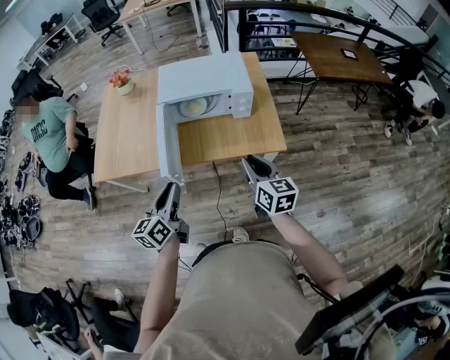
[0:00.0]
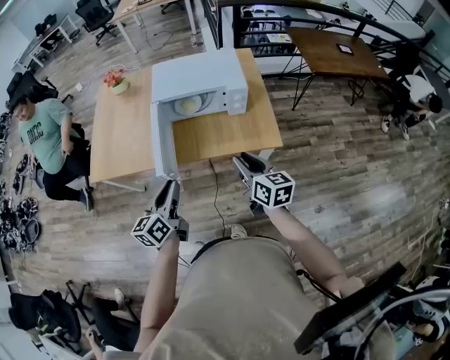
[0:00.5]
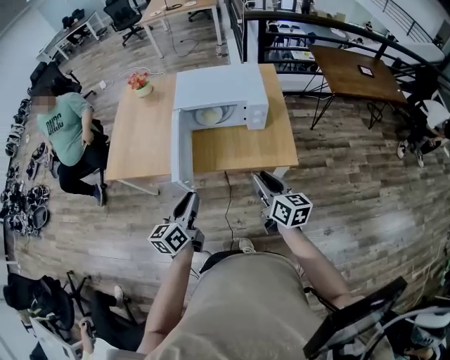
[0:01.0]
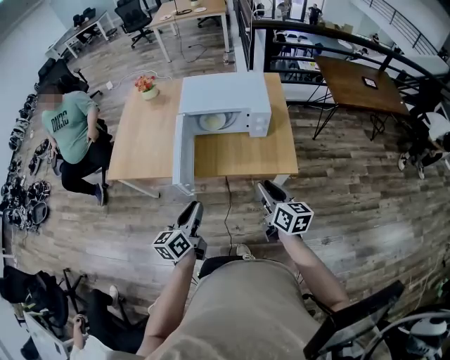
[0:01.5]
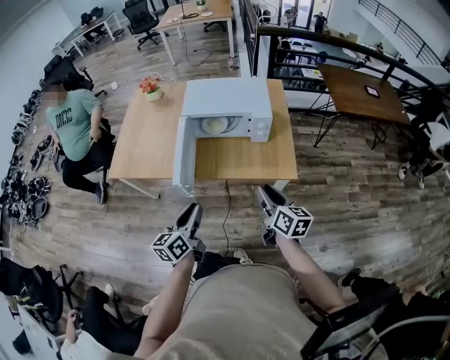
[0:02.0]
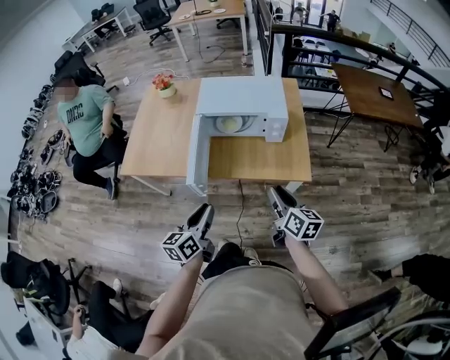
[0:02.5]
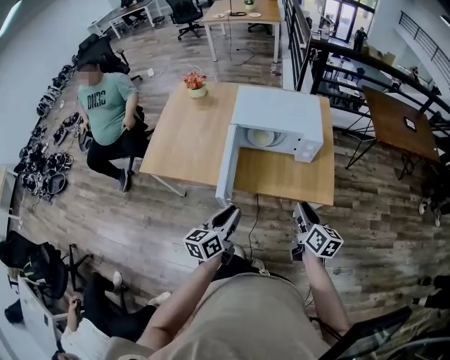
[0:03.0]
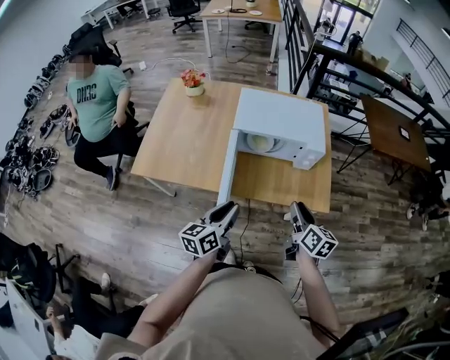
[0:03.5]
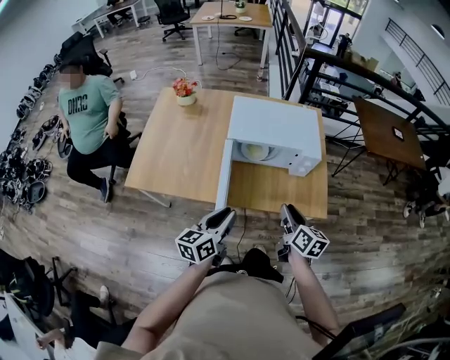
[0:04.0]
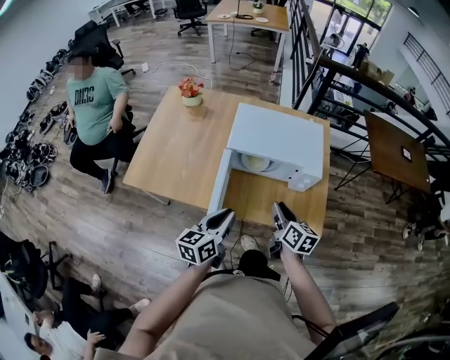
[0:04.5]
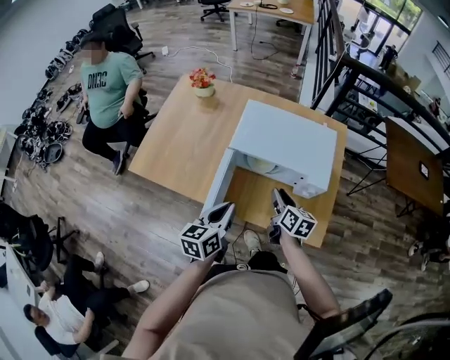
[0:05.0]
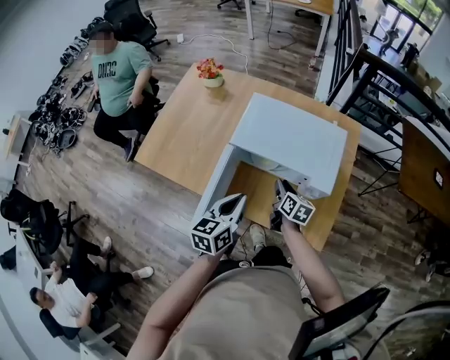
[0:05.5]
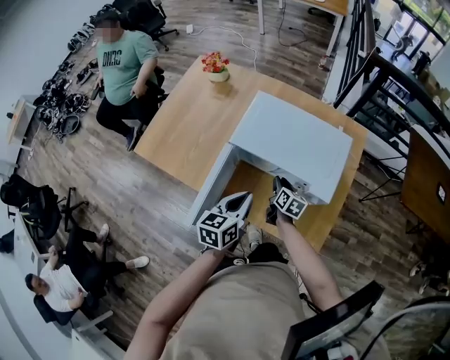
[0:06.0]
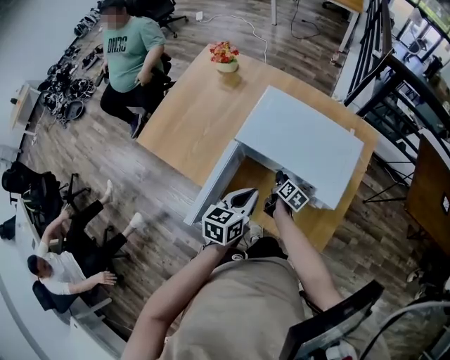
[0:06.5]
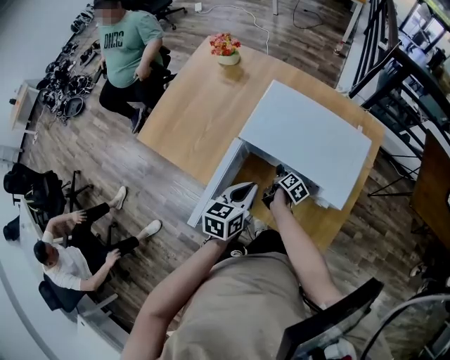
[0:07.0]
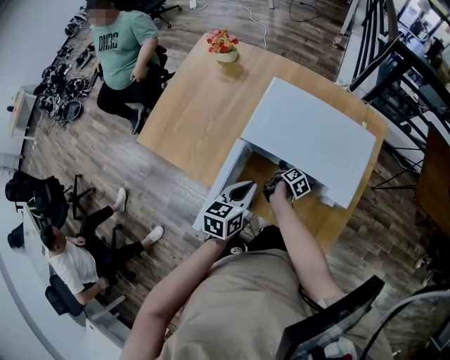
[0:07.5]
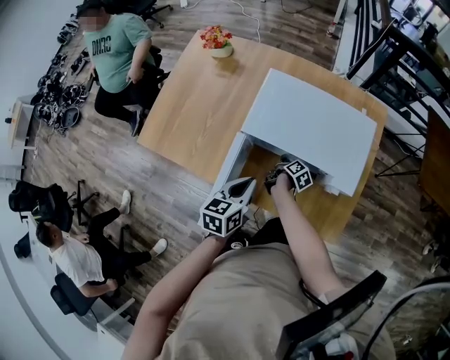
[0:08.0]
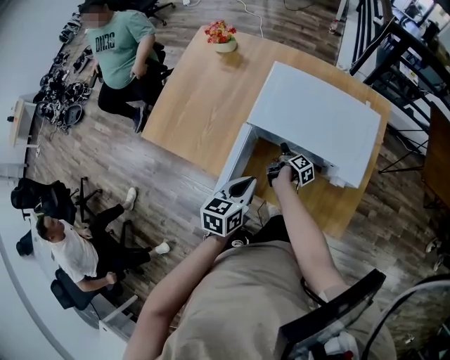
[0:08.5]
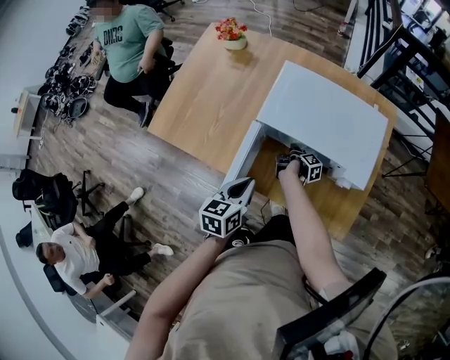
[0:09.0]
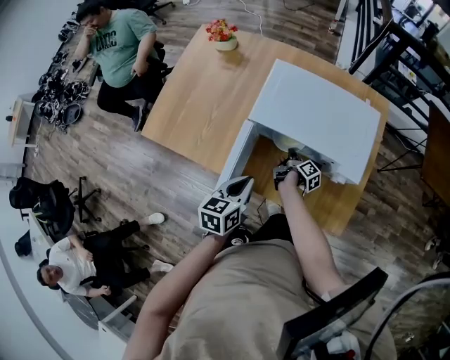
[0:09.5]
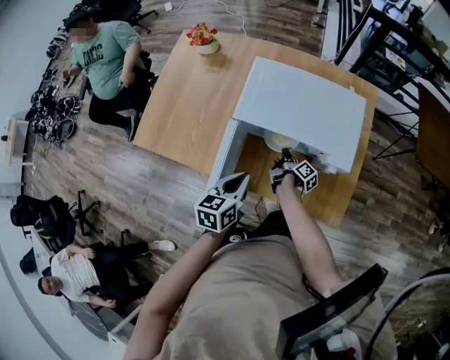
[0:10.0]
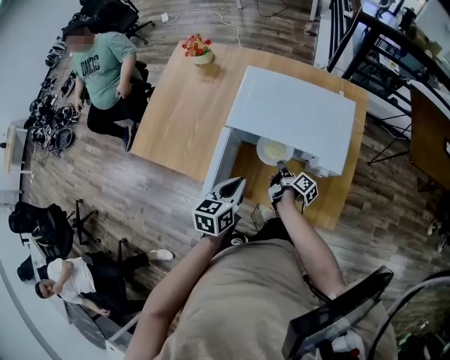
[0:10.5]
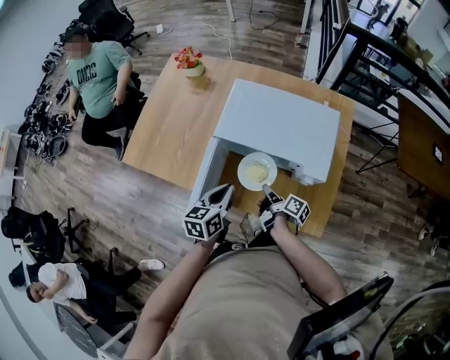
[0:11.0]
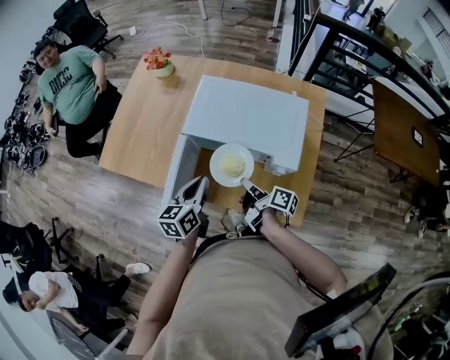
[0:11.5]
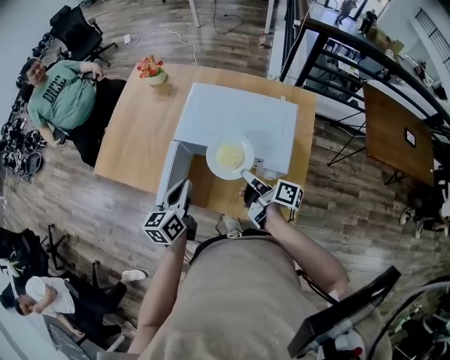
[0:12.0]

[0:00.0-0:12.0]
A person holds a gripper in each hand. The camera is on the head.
0:00.0 to 0:02.0: The left gripper moves about 5 cm.
0:02.0 to 0:04.0: Both grippers travel together forward and to the left, approximately 15 cm.
0:04.0 to 0:06.0: The right gripper travels forward and downward by some 35 cm, while the left gripper heads forward and to the right, covering roughly 25 cm, and rotates approximately 20 degrees.
0:06.0 to 0:08.0: The left gripper heads to the left, covering about 5 cm, while the right gripper is displaced downward by some 10 cm, and rolls clockwise, seen from behind, by approximately 40 degrees.
0:08.0 to 0:10.0: The right gripper moves roughly 5 cm, changes its angle by approximately 20 degrees, and opens, then closes once more.
0:10.0 to 0:12.0: The right gripper moves upward, about 25 cm, and changes its angle by about 40 degrees. Meanwhile the left gripper goes roughly 5 cm upward, and rotates roughly 20 degrees.

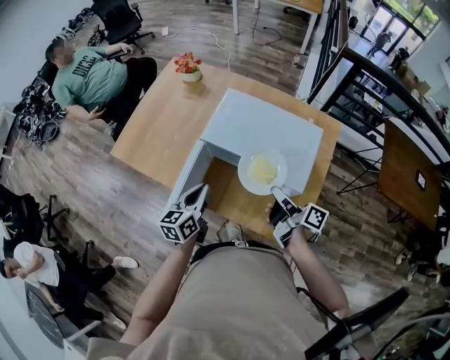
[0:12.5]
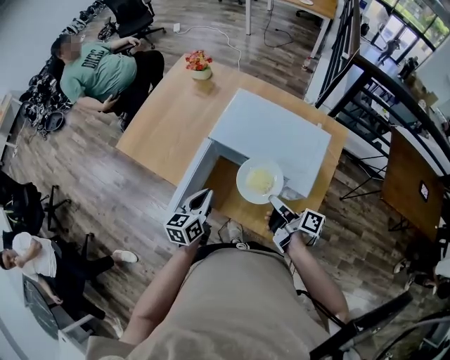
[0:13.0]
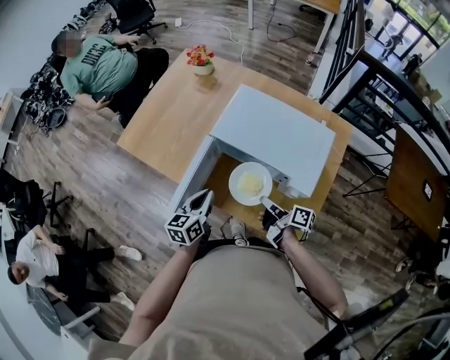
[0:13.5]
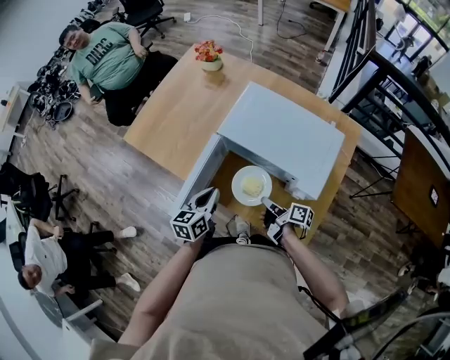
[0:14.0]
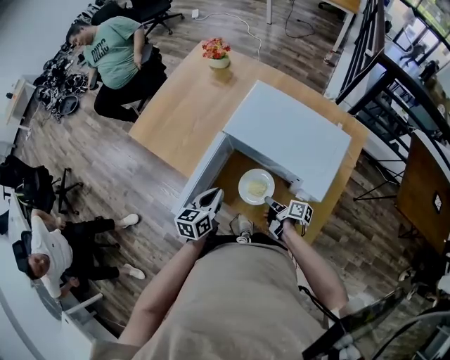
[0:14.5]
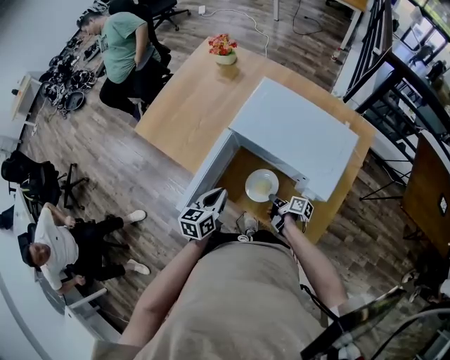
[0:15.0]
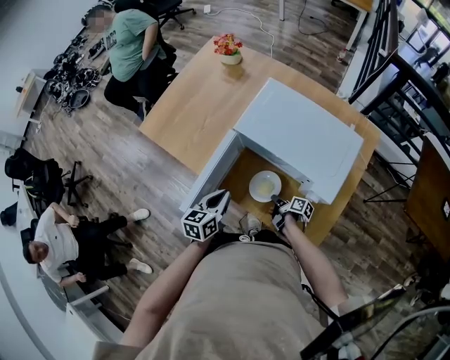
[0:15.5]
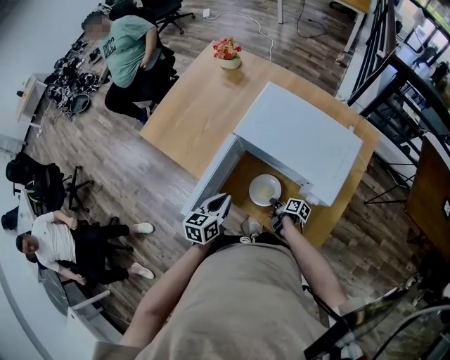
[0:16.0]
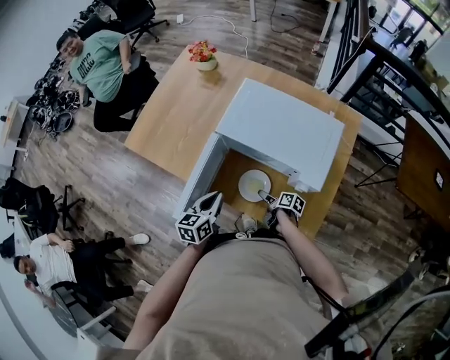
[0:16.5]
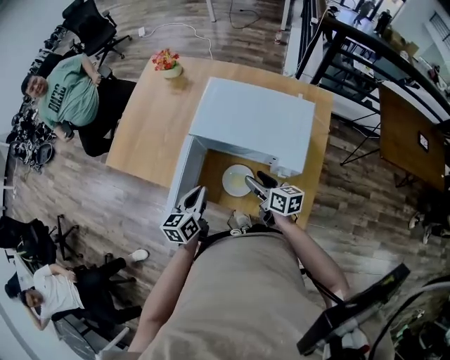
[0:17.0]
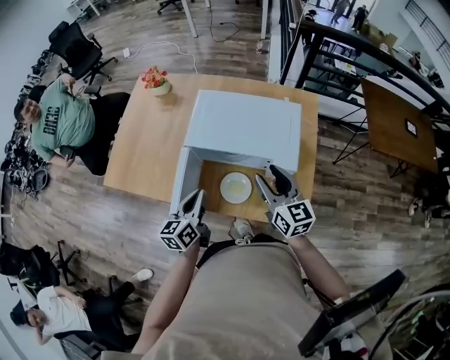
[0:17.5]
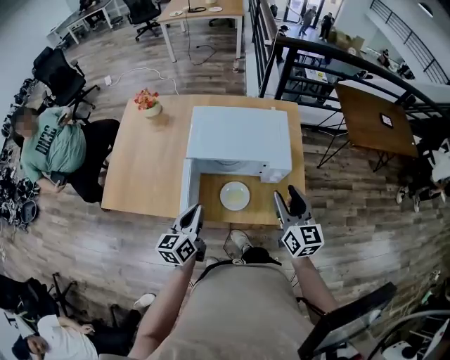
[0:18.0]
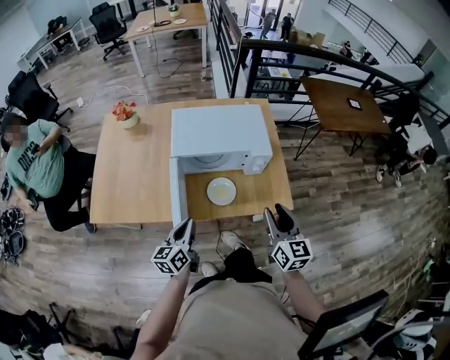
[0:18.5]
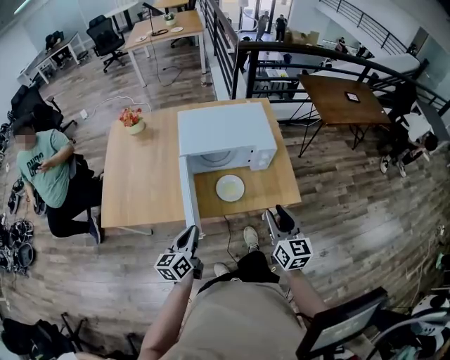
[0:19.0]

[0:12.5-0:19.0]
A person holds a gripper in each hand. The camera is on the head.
0:12.5 to 0:14.5: The left gripper heads downward, covering about 10 cm; the right gripper travels downward by roughly 25 cm, and rotates about 30 degrees.
0:14.5 to 0:17.0: The right gripper is displaced upward by about 15 cm, swivels approximately 40 degrees, and opens its fingers.
0:17.0 to 0:19.0: The left gripper ends up roughly 20 cm from where it was, and turns by approximately 20 degrees. Meanwhile the right gripper moves about 30 cm, and changes its angle by about 50 degrees.

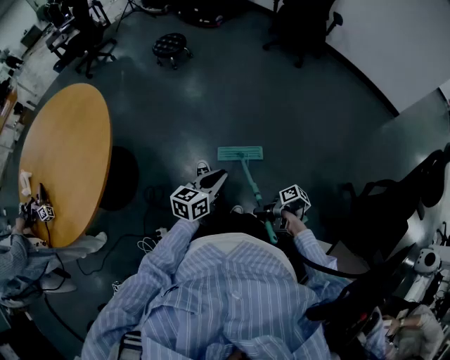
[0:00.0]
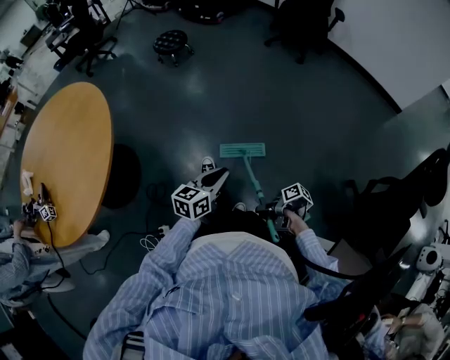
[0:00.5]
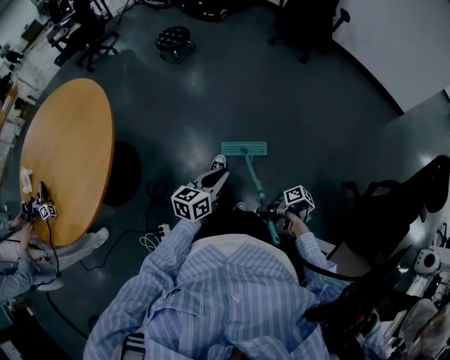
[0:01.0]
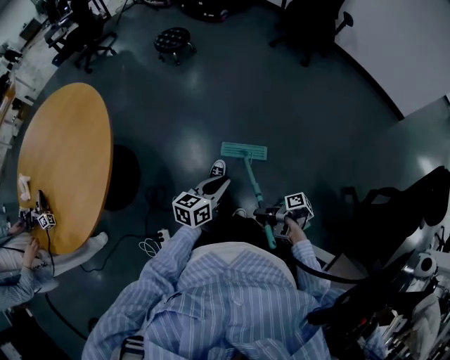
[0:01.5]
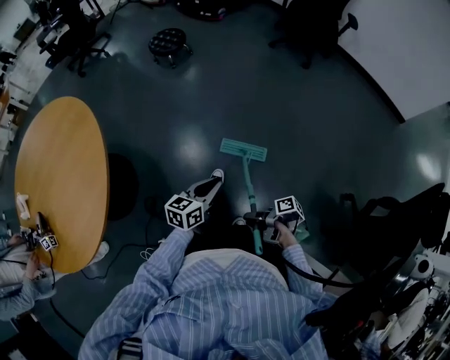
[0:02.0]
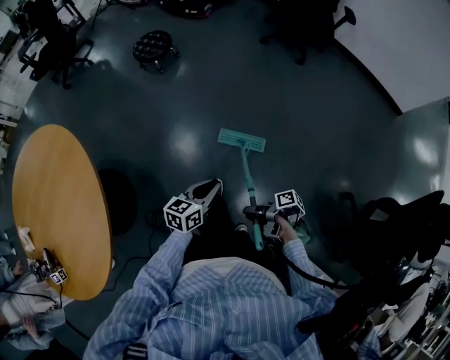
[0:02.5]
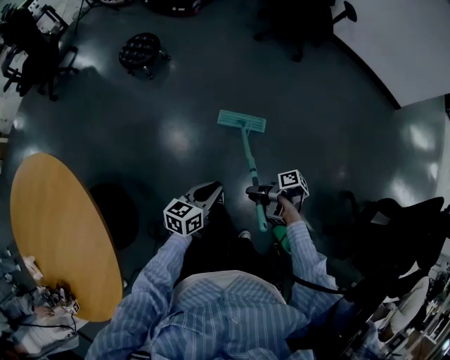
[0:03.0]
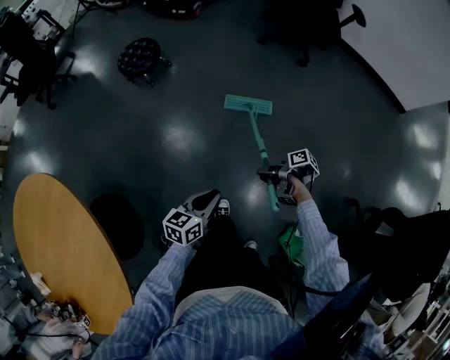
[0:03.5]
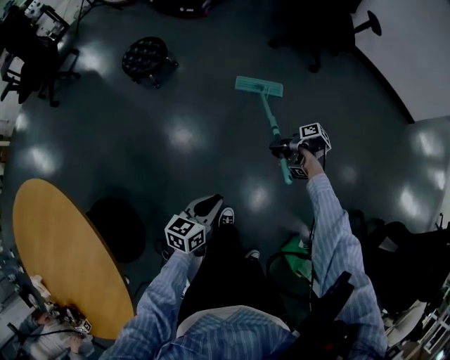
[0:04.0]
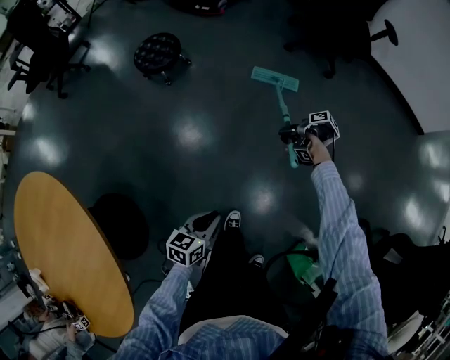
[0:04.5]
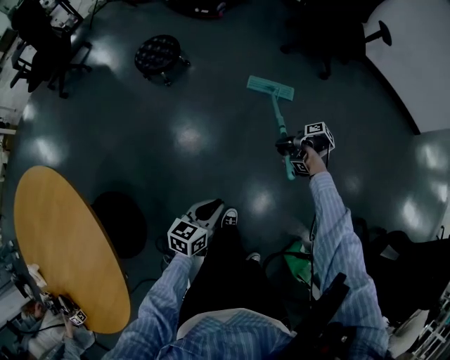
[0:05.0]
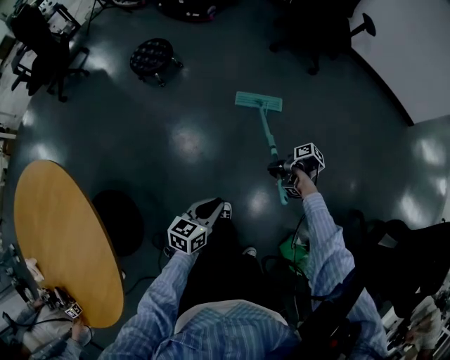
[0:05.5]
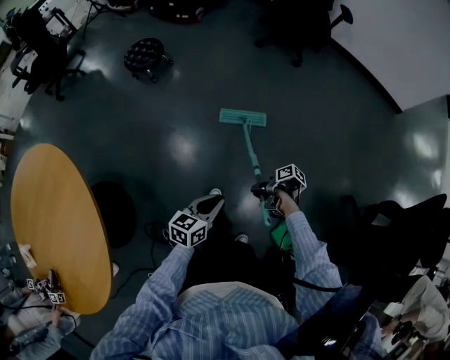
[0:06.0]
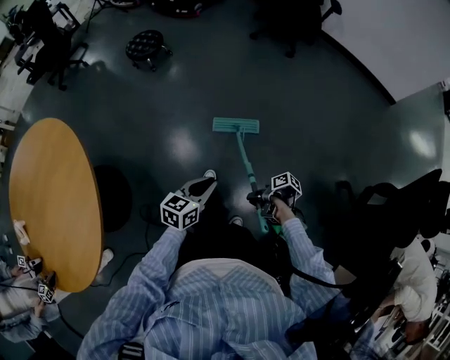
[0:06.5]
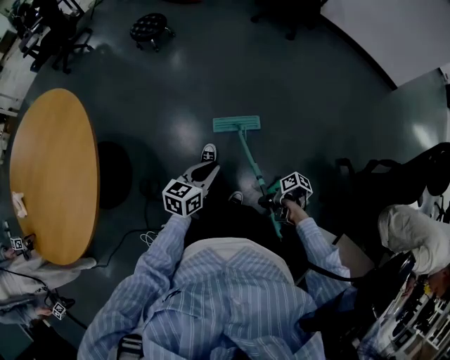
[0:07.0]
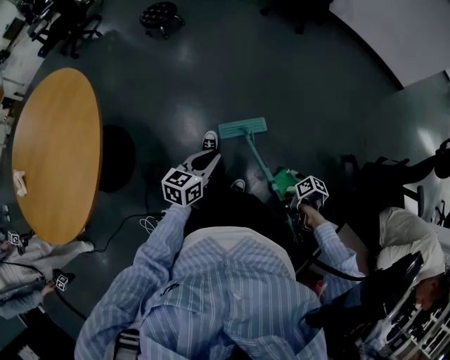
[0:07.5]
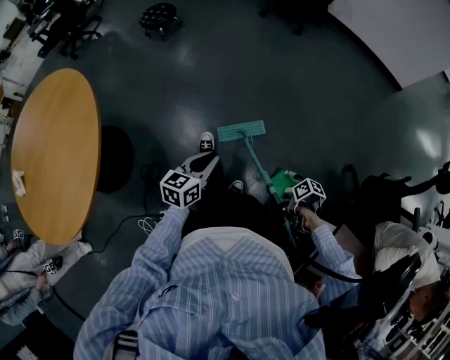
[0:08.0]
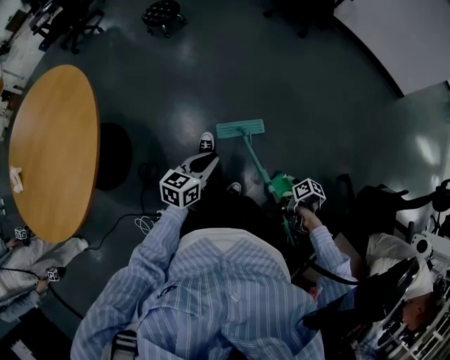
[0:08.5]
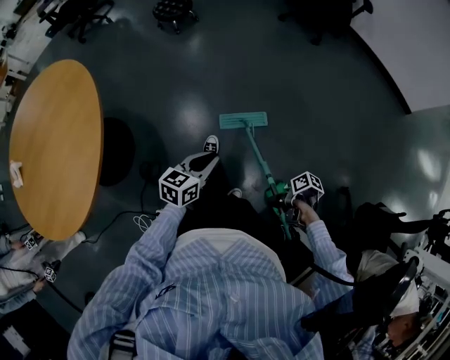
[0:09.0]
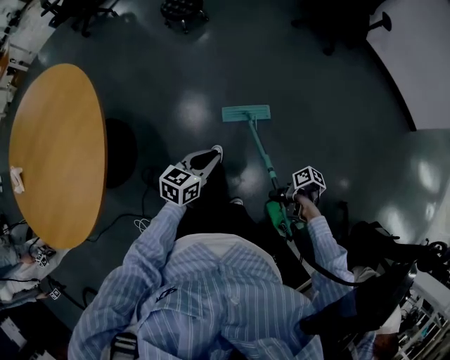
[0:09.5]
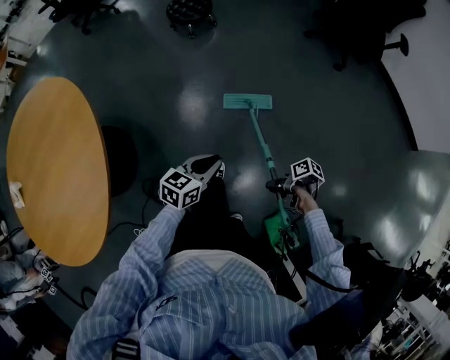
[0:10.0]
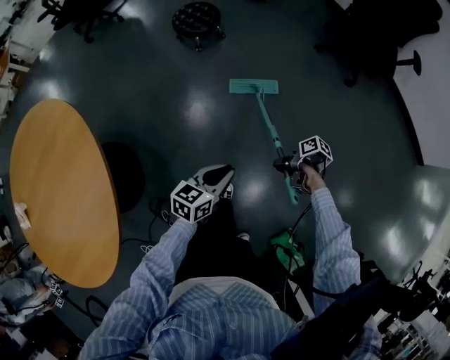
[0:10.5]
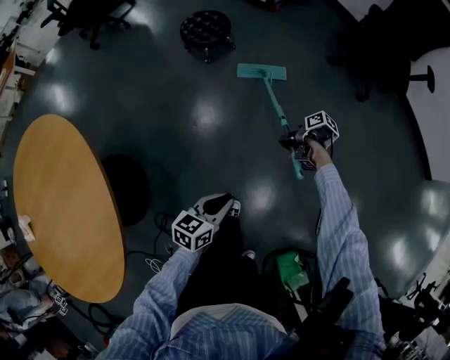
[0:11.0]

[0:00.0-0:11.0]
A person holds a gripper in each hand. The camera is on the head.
0:00.0 to 0:02.0: The left gripper ends up about 15 cm from where it was.
0:02.0 to 0:03.5: The left gripper ends up some 30 cm from where it was.
0:05.5 to 0:07.5: The left gripper changes place by about 40 cm.
0:07.5 to 0:09.0: The left gripper ends up some 10 cm from where it was.
0:09.0 to 0:11.0: The left gripper changes place by some 40 cm.
